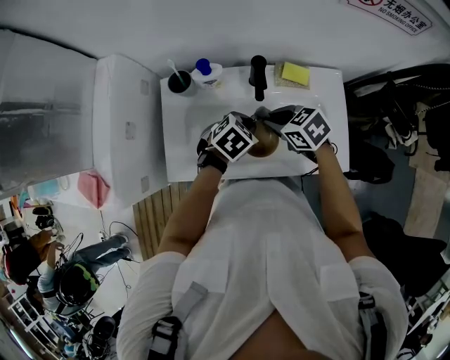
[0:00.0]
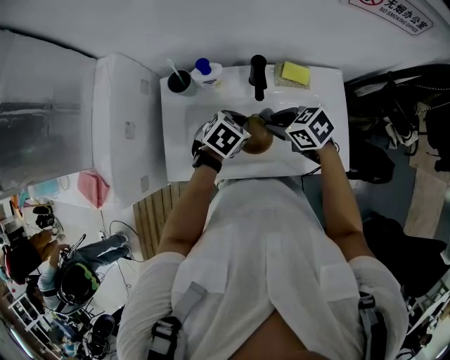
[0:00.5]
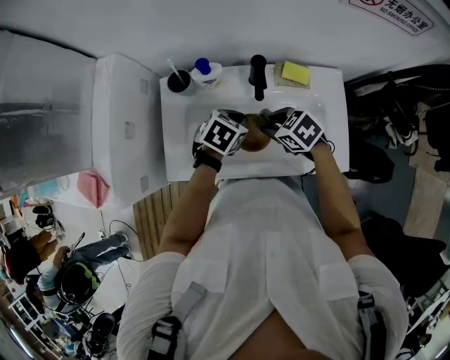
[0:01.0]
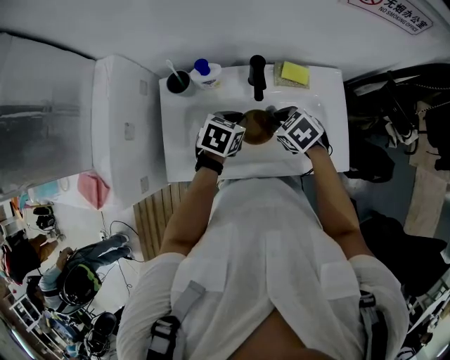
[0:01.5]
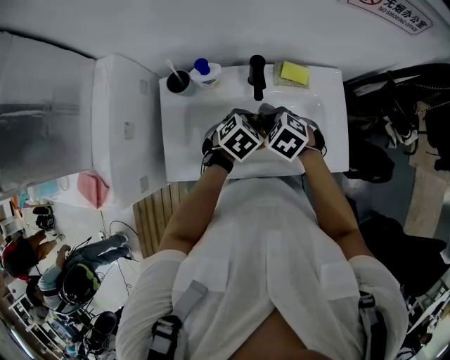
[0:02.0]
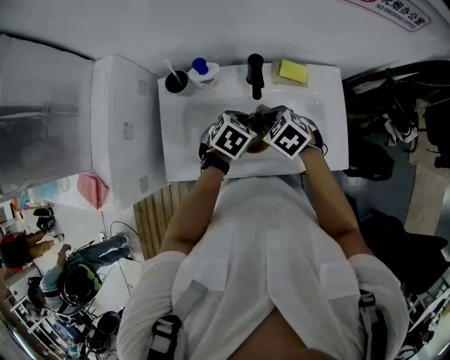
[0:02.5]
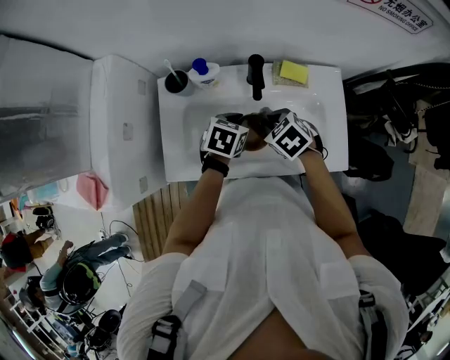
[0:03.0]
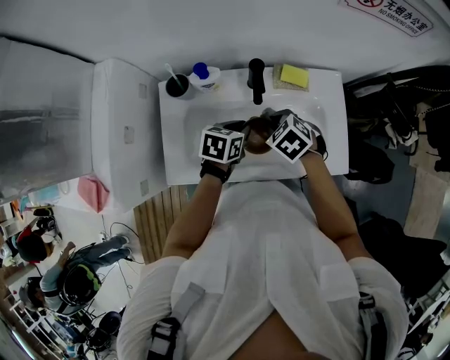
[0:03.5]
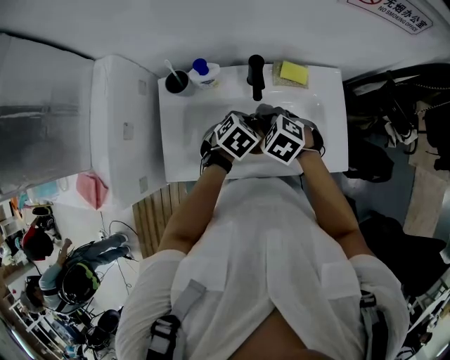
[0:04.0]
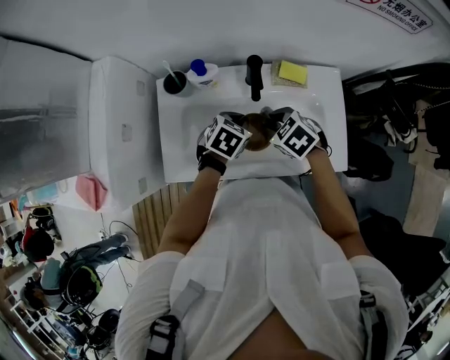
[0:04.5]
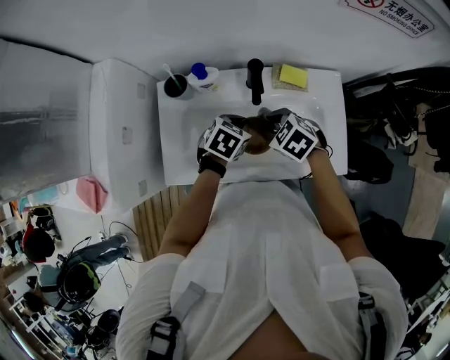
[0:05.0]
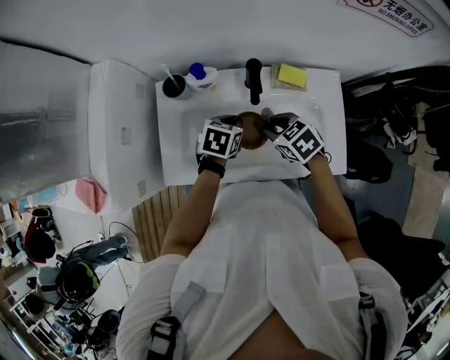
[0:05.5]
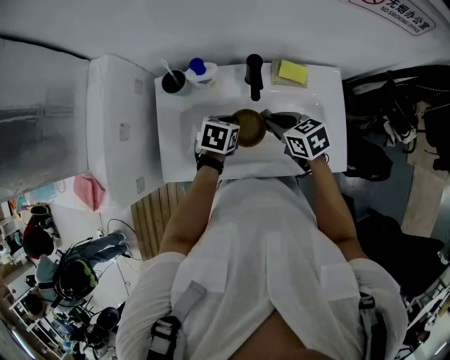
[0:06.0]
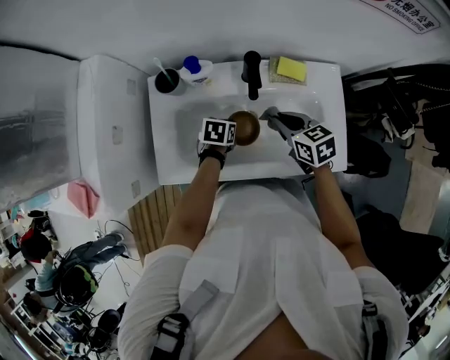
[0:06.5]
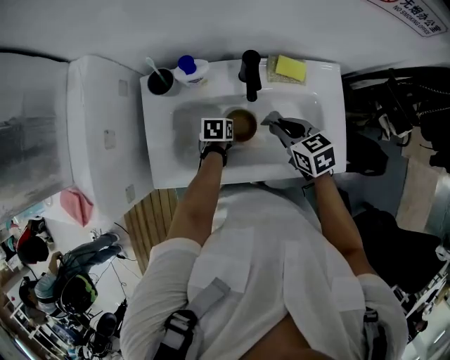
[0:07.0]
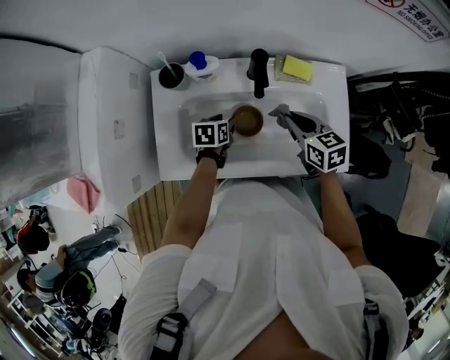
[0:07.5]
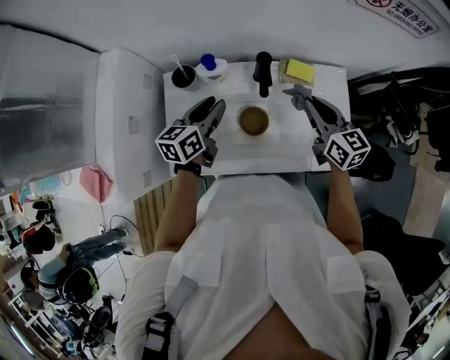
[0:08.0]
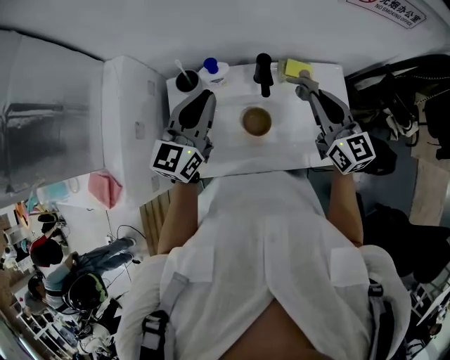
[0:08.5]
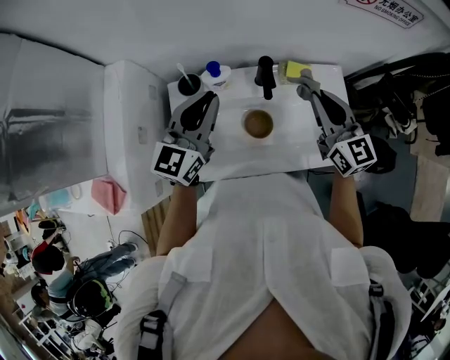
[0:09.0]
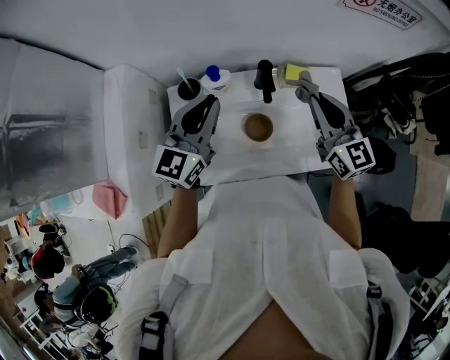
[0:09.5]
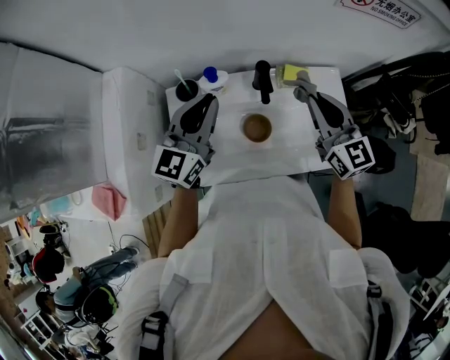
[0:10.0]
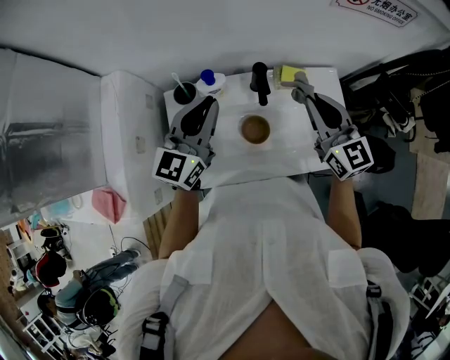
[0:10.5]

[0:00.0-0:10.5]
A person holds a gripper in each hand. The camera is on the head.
0:00.0 to 0:02.0: The left gripper opens, while the right gripper changes its angle by approximately 30 degrees.
0:04.0 to 0:06.5: The right gripper goes about 5 cm to the right, and rotates roughly 50 degrees. Meanwhile the left gripper travels downward and to the left by roughly 10 cm, and changes its angle by roughly 30 degrees.
0:06.5 to 0:08.5: The right gripper heads upward, covering some 20 cm, and angles its fingers upward, by roughly 30 degrees, while the left gripper shifts some 35 cm upward, angles its fingers upward, by roughly 60 degrees, and opens, then closes once more.
0:08.5 to 0:10.5: The grippers make only small movements.

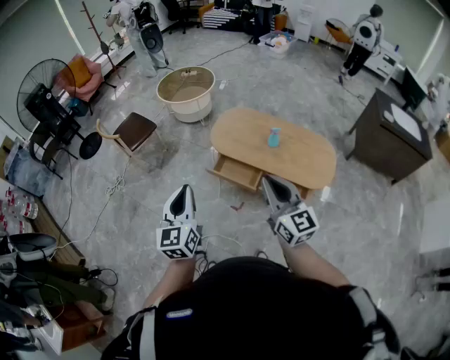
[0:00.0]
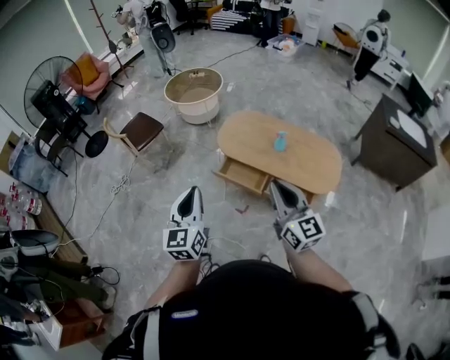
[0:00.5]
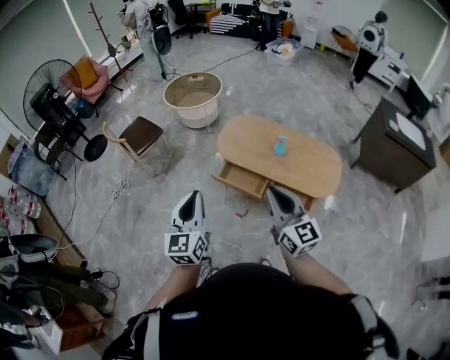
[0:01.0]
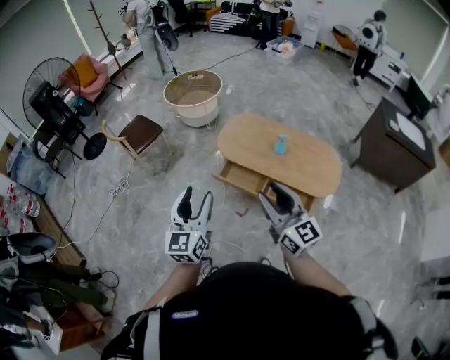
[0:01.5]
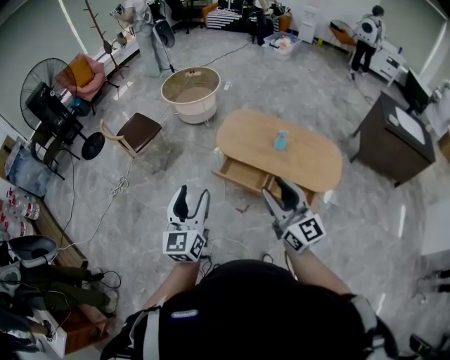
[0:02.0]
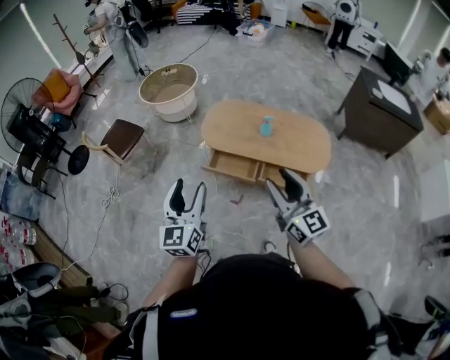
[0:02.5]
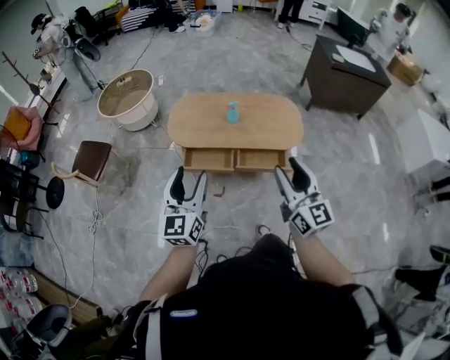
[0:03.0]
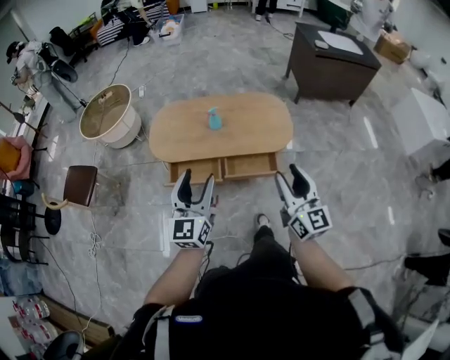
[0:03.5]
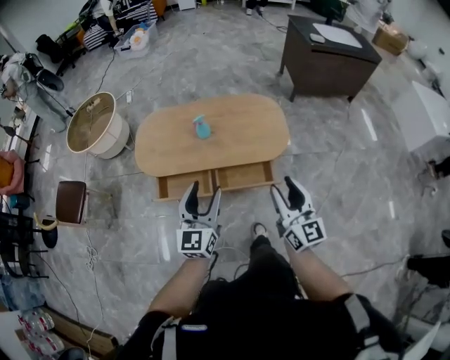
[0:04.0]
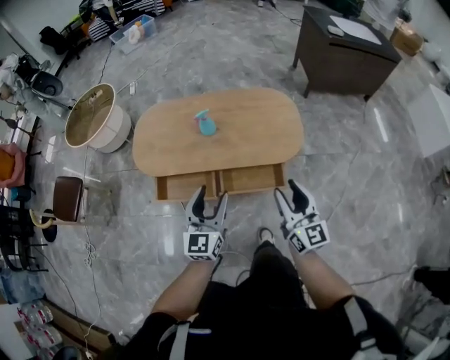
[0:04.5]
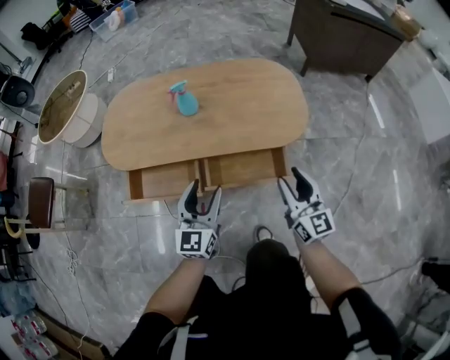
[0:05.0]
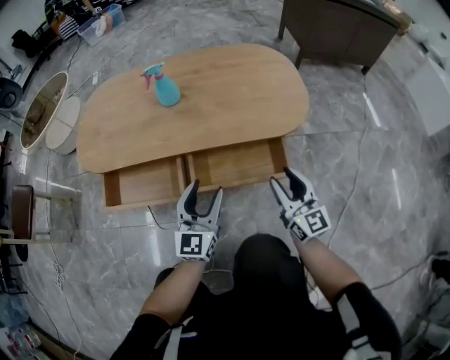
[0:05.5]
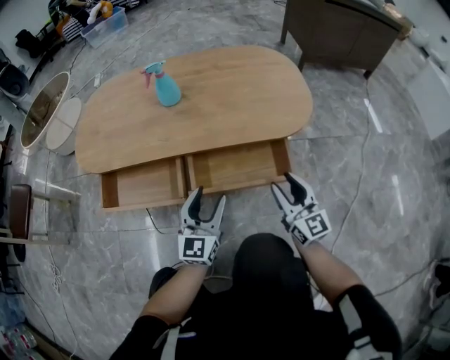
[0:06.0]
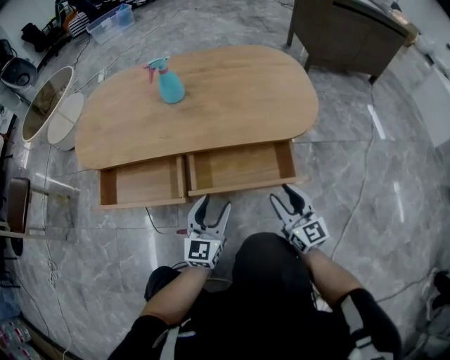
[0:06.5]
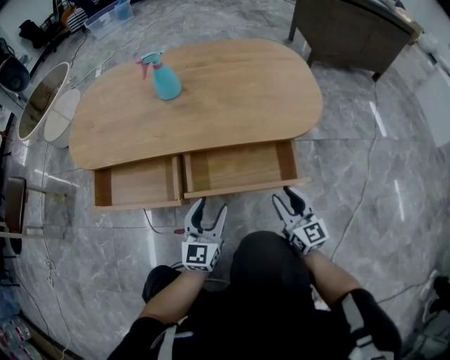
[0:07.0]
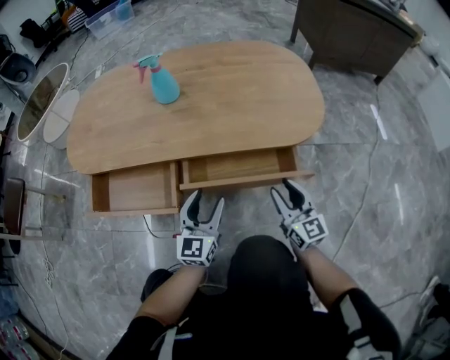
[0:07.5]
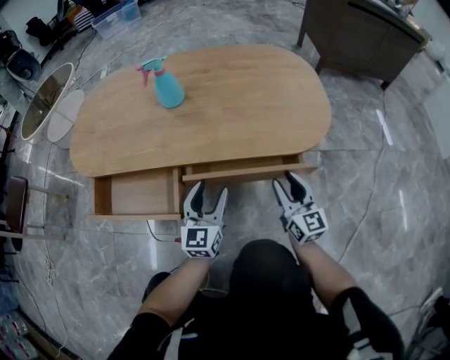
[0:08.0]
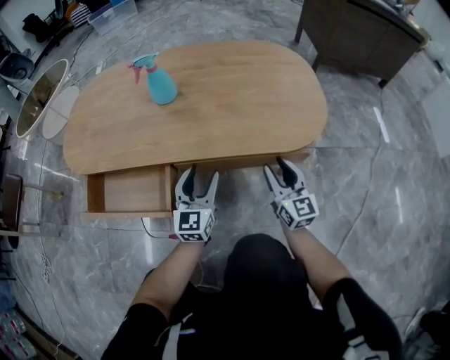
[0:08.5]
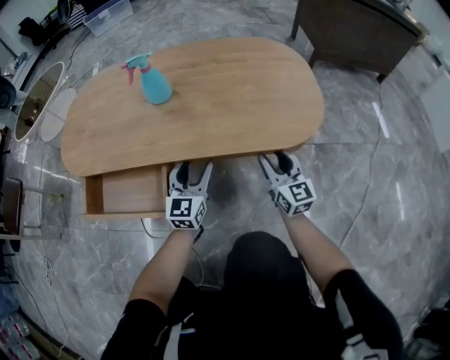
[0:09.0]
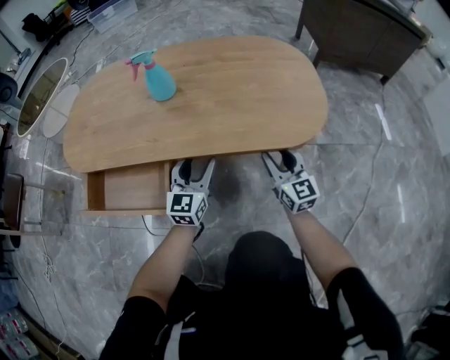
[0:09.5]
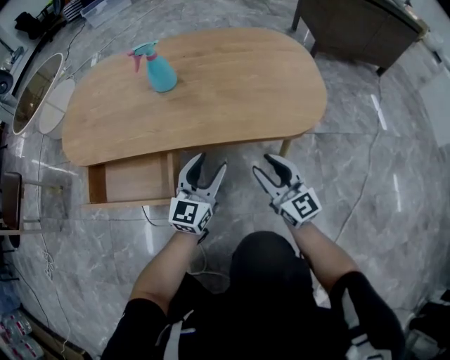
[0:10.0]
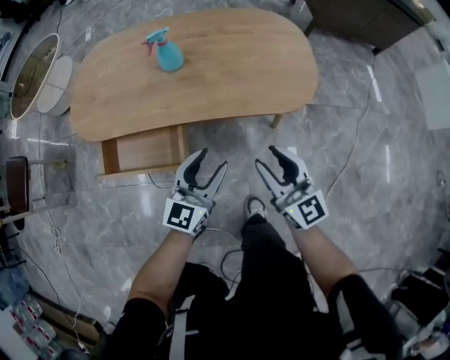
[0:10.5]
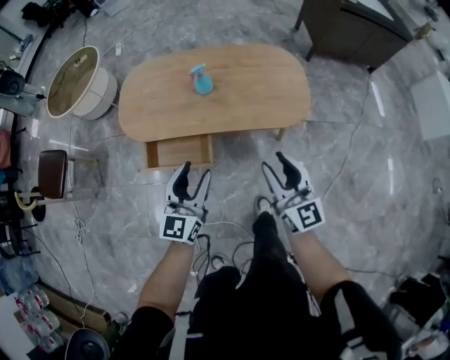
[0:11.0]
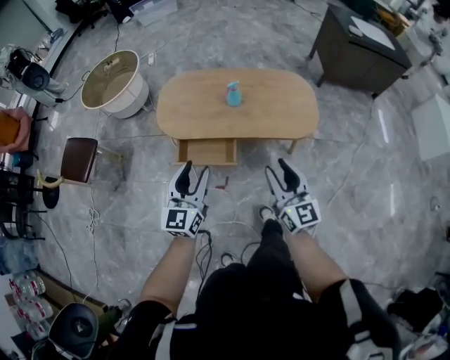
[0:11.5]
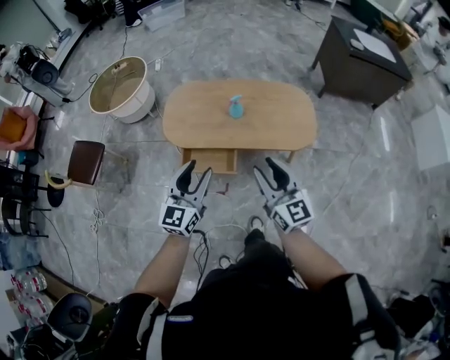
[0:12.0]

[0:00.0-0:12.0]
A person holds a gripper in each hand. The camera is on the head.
0:00.0 to 0:02.0: The left gripper opens up; the right gripper opens up.
0:02.0 to 0:04.0: The left gripper shifts by approximately 35 cm, and swivels some 30 degrees, while the right gripper changes place by some 30 cm, and swivels some 40 degrees.
0:04.0 to 0:06.0: The two grippers go about 50 cm downward.
0:06.0 to 0:08.0: Both grippers move forward and downward, approximately 10 cm.
0:08.0 to 0:10.0: The left gripper travels forward and back again, some 10 cm each way. Meanwhile the right gripper goes some 5 cm to the left, and moves approximately 5 cm forward and comes back.
0:10.0 to 0:12.0: The right gripper moves upward, roughly 50 cm. The left gripper heads upward and to the left, covering some 60 cm.

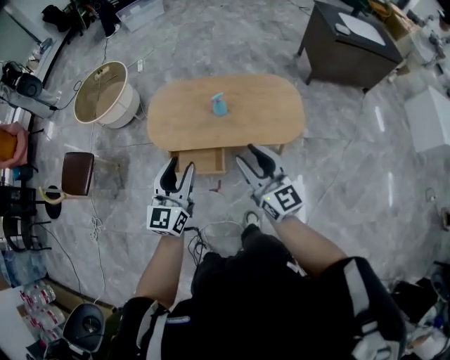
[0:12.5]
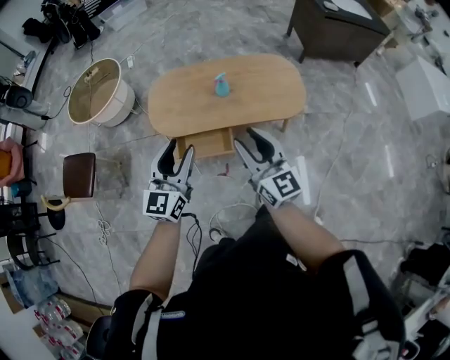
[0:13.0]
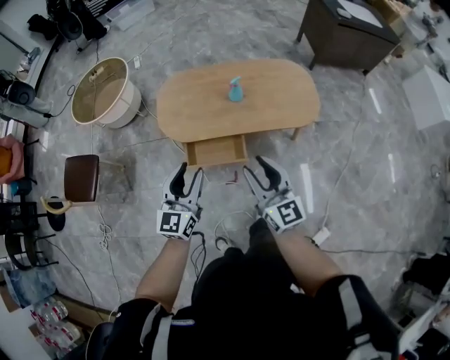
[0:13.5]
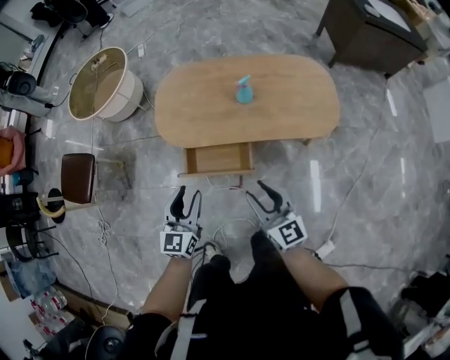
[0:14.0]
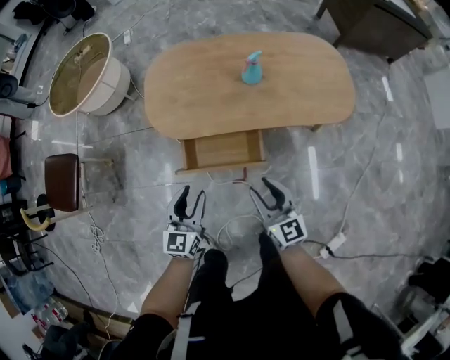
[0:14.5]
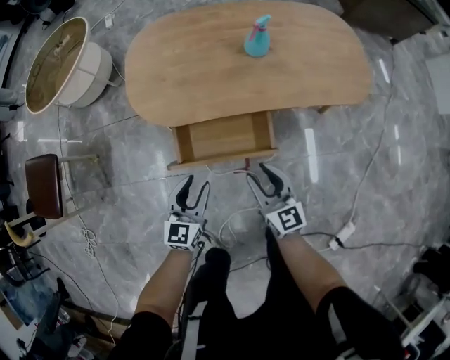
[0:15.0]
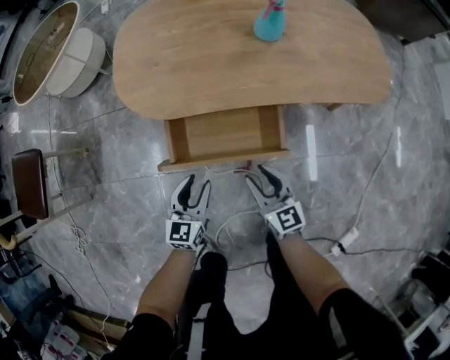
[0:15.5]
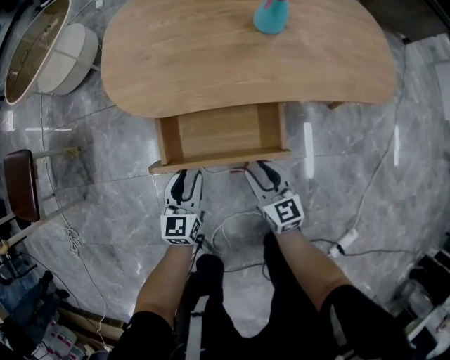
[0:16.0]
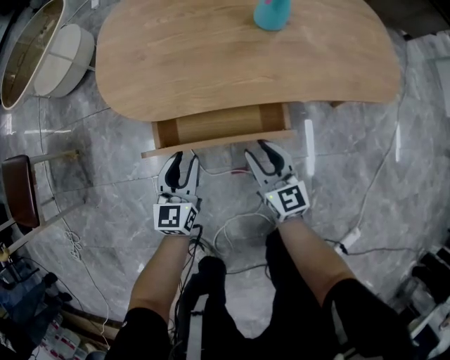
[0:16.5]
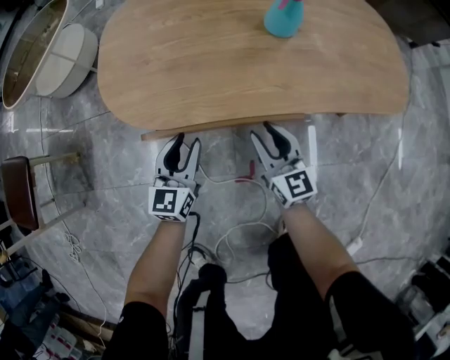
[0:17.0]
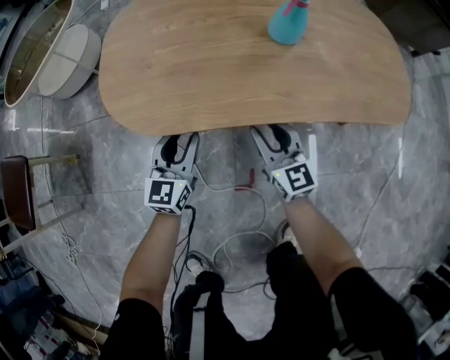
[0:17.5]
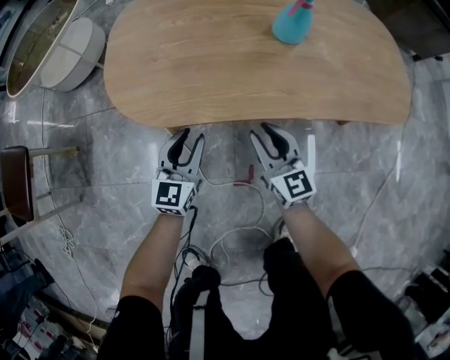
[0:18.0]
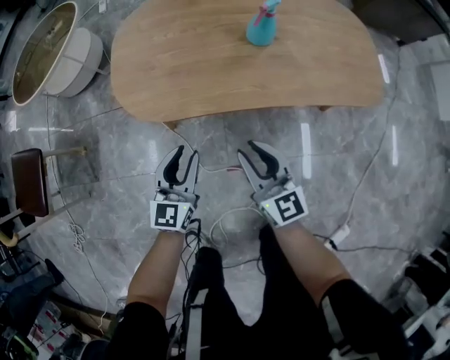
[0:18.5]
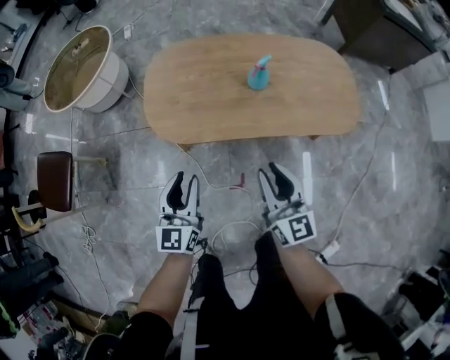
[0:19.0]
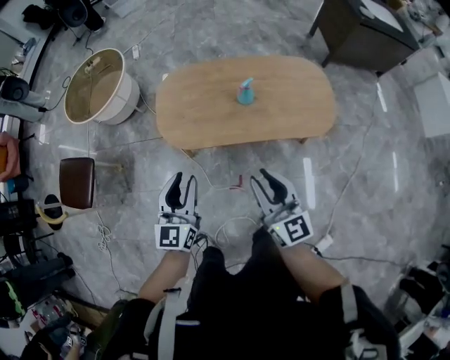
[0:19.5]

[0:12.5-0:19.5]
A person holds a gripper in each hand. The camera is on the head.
0:12.5 to 0:14.5: Both grippers move downward and to the left, about 40 cm.
0:14.5 to 0:16.0: The two grippers go about 25 cm downward.
0:16.0 to 0:17.5: The two grippers go some 15 cm forward.
0:17.5 to 0:19.5: Both grippers move upward, approximately 50 cm.
